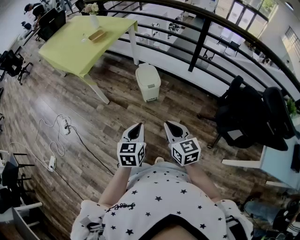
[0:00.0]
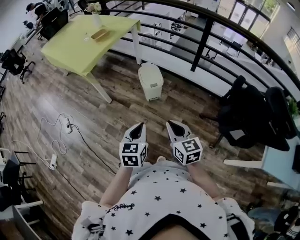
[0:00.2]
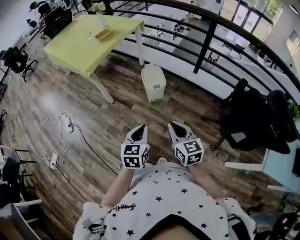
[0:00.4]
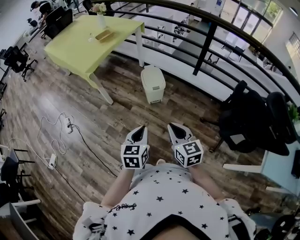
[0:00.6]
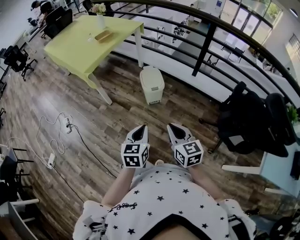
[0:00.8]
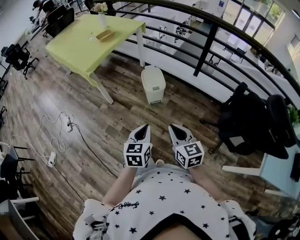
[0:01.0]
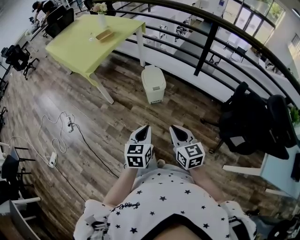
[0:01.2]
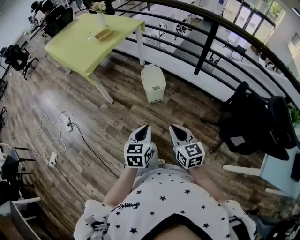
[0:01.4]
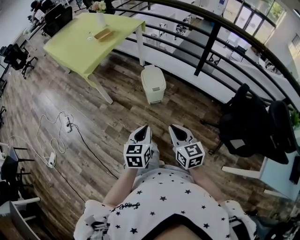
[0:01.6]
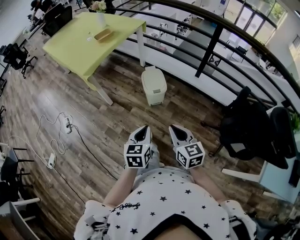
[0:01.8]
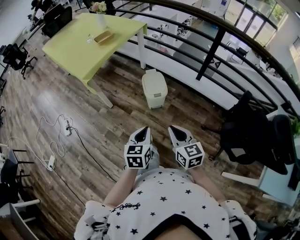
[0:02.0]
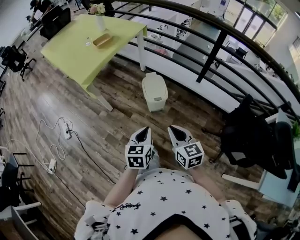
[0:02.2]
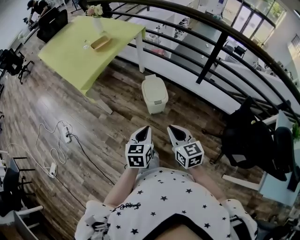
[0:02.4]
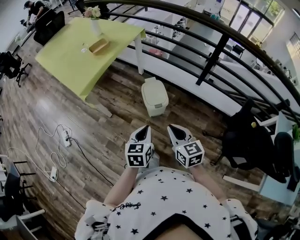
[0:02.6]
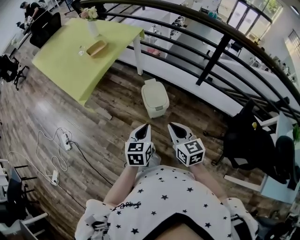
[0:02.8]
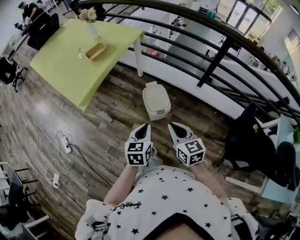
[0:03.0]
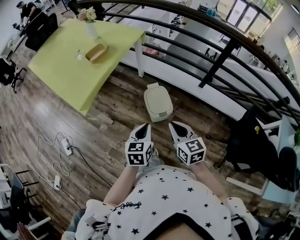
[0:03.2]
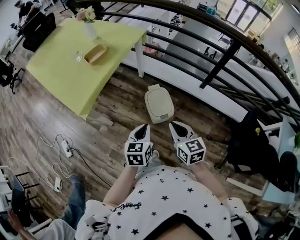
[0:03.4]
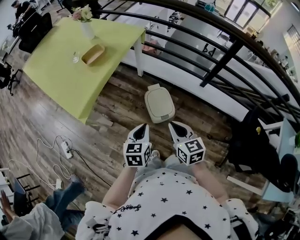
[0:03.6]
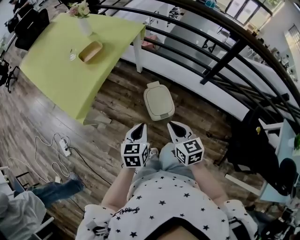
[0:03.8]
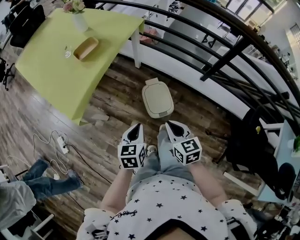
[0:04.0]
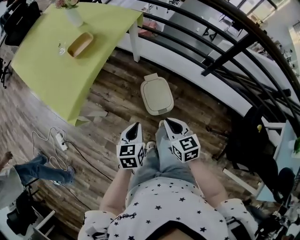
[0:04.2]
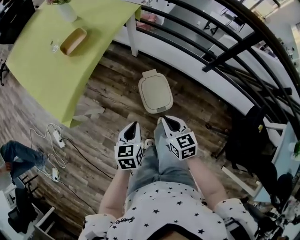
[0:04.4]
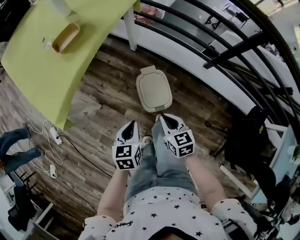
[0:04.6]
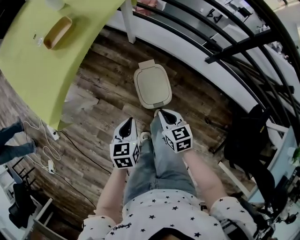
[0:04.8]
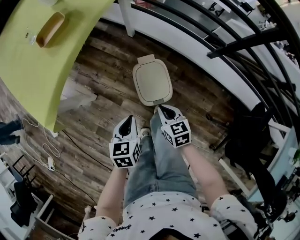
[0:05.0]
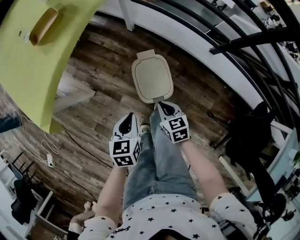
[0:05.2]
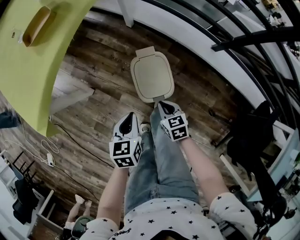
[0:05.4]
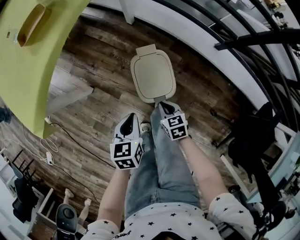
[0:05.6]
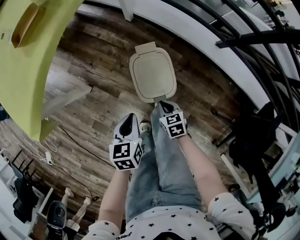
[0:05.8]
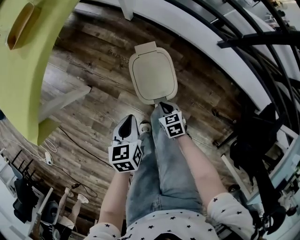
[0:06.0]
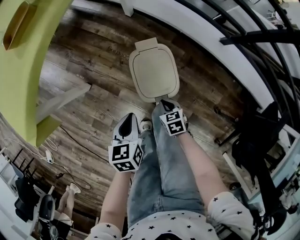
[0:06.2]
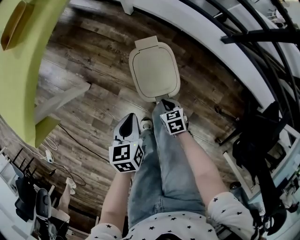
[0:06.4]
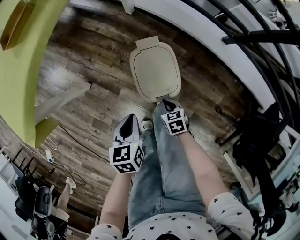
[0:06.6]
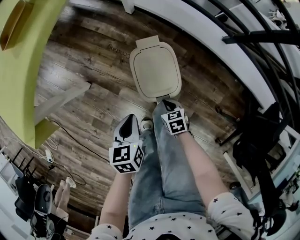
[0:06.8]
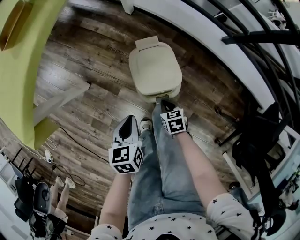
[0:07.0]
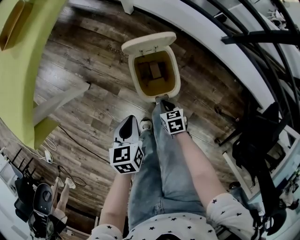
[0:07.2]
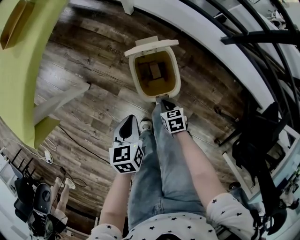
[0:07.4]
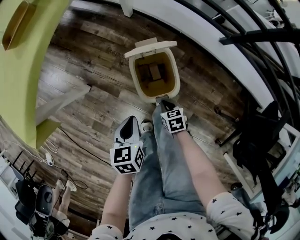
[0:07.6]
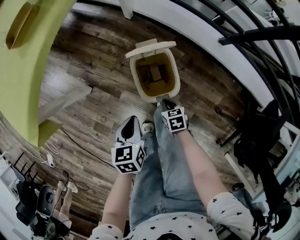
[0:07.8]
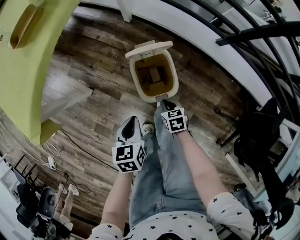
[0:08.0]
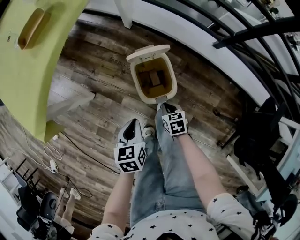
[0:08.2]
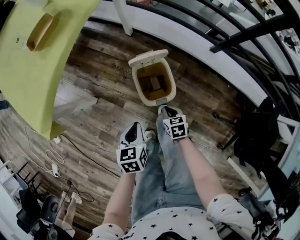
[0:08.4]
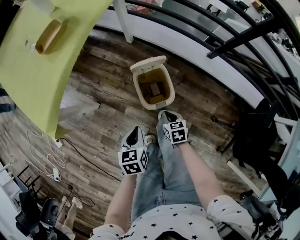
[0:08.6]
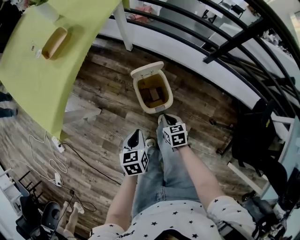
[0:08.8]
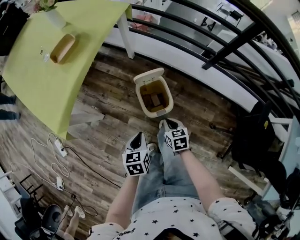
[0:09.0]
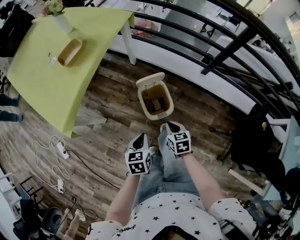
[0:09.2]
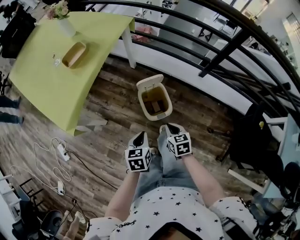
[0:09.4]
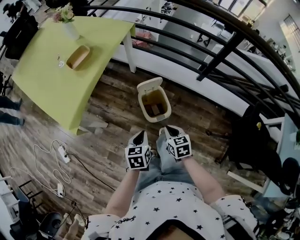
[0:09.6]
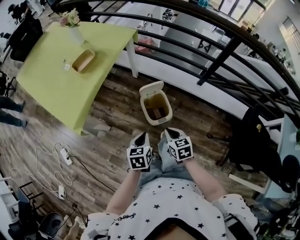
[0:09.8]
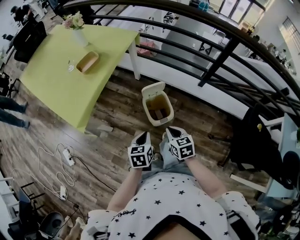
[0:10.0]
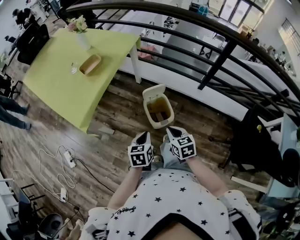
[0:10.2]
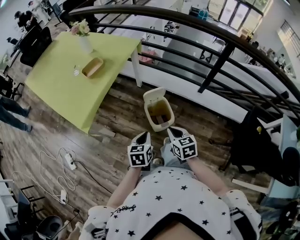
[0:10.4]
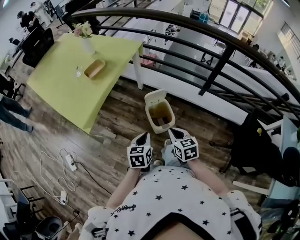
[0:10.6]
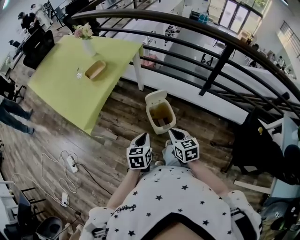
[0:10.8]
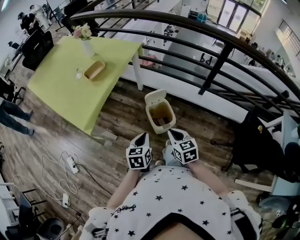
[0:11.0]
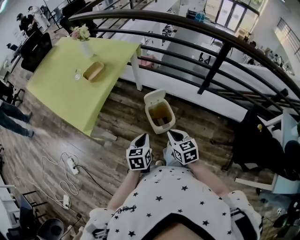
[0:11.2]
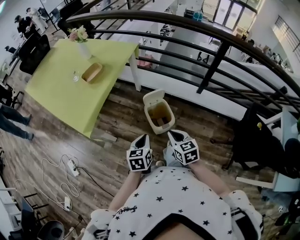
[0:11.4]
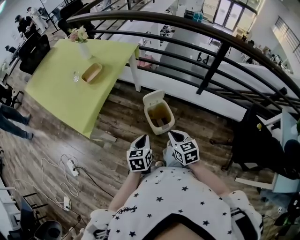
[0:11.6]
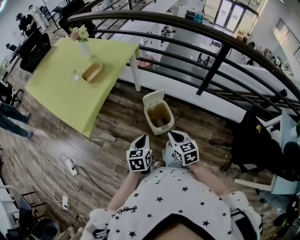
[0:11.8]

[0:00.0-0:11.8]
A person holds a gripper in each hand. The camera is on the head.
0:00.0 to 0:01.4: There are only small adjustments of the grippers.
0:01.4 to 0:03.0: The grippers both shift forward by roughly 30 cm.
0:03.0 to 0:04.4: The grippers both shift forward and downward by some 20 cm.
0:04.4 to 0:06.0: The right gripper goes roughly 35 cm downward, and rotates about 30 degrees. The left gripper heads downward, covering roughly 20 cm.
0:06.0 to 0:07.4: There are only small adjustments of the grippers.
0:07.4 to 0:08.8: The left gripper heads upward and backward, covering some 10 cm; the right gripper travels upward by some 20 cm.
0:08.8 to 0:10.4: The left gripper heads upward, covering about 15 cm. Meanwhile the right gripper goes about 25 cm upward.
0:10.4 to 0:11.8: The grippers move only a little.

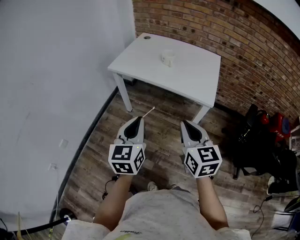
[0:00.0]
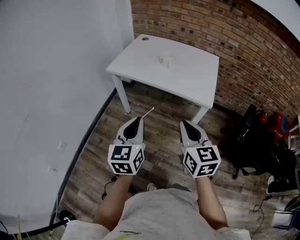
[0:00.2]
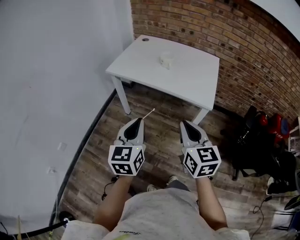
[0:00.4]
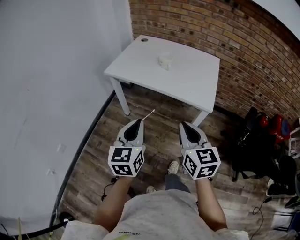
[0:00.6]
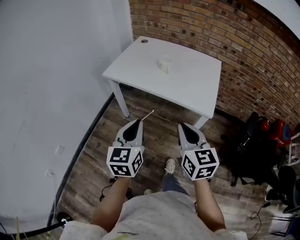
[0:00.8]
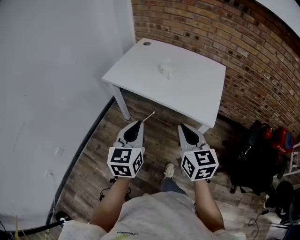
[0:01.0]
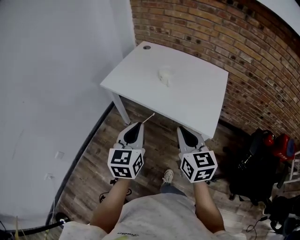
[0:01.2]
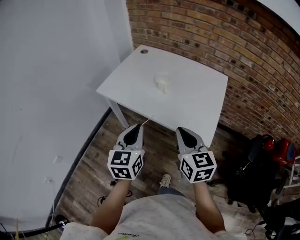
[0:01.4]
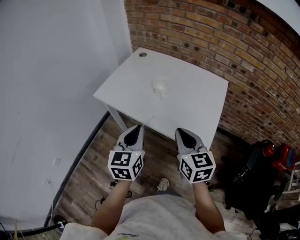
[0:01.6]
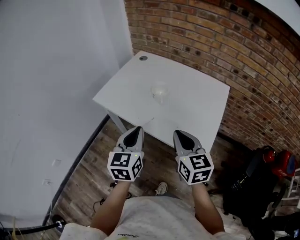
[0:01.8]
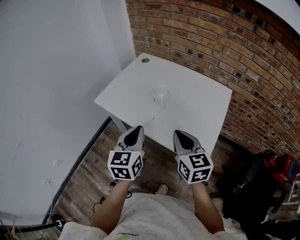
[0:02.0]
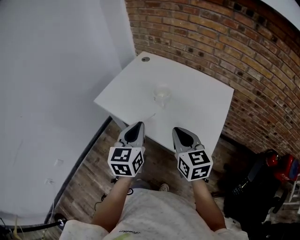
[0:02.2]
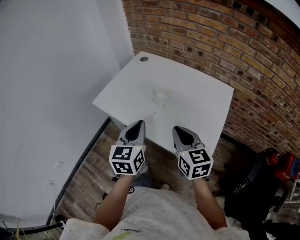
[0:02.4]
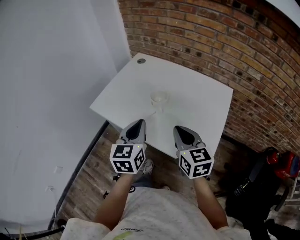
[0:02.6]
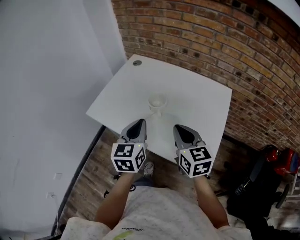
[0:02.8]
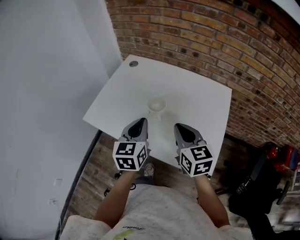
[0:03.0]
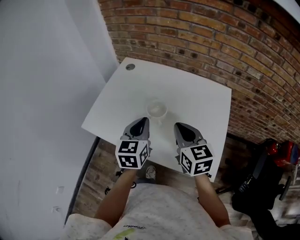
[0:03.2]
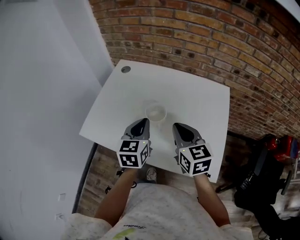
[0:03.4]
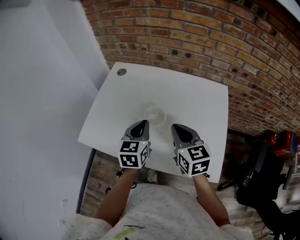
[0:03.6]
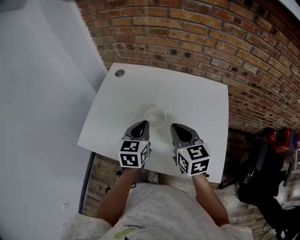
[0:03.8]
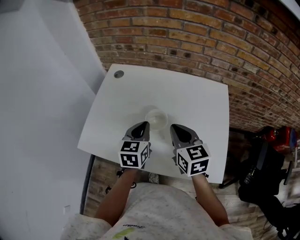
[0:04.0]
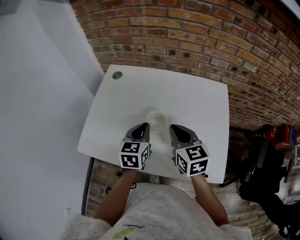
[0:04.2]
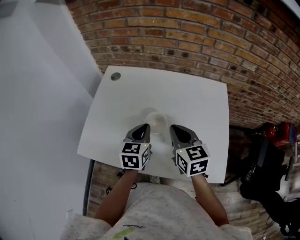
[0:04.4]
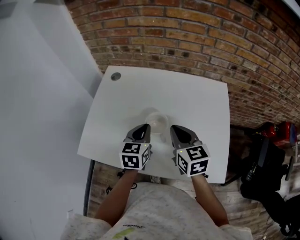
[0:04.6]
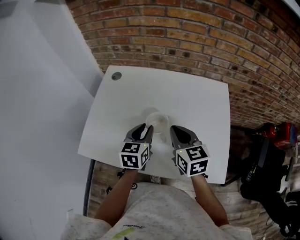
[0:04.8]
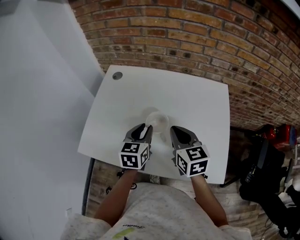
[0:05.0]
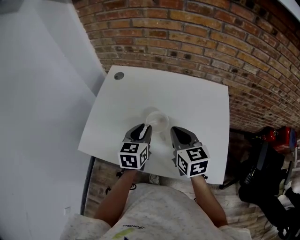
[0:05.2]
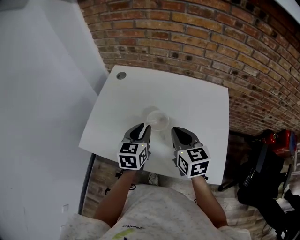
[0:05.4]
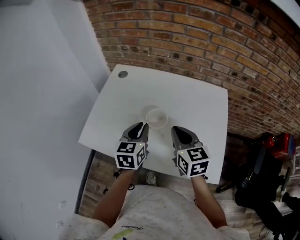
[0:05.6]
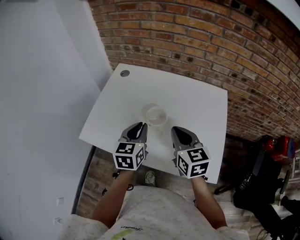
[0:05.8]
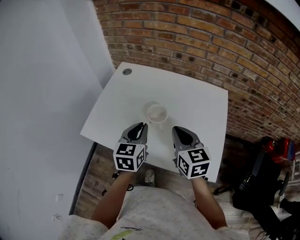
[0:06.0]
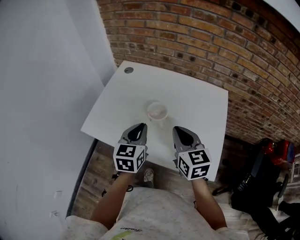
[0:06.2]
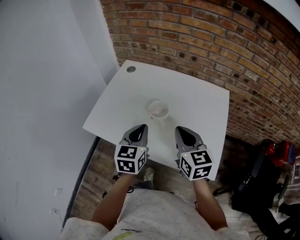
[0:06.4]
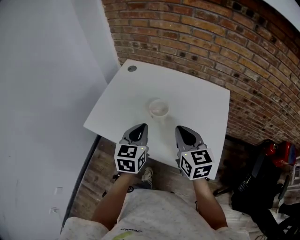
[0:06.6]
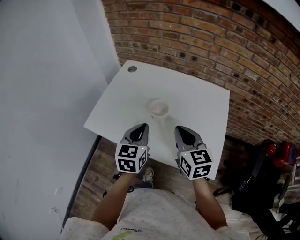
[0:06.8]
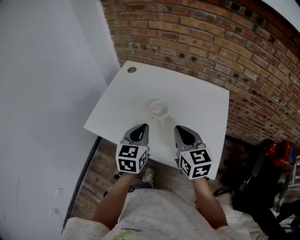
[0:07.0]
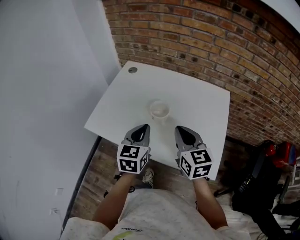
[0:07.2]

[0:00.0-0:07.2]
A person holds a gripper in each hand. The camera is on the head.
0:00.0 to 0:01.4: The left gripper heads forward and to the right, covering approximately 25 cm; the right gripper goes some 25 cm forward.
0:01.4 to 0:02.8: Both grippers move forward, roughly 20 cm.
0:02.8 to 0:04.4: The left gripper goes approximately 20 cm forward and downward, and turns by some 20 degrees, while the right gripper goes approximately 15 cm forward.
0:04.4 to 0:05.8: Both grippers travel together backward, about 5 cm.
0:05.8 to 0:07.2: The two grippers go roughly 5 cm backward.

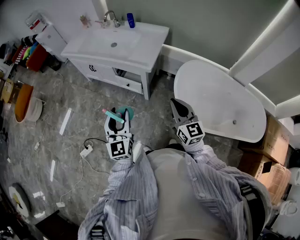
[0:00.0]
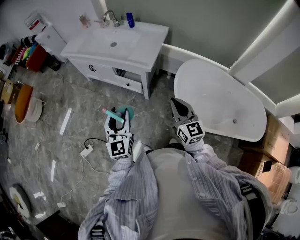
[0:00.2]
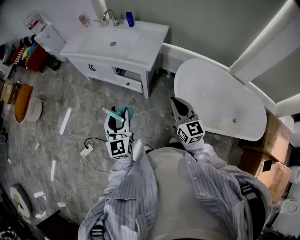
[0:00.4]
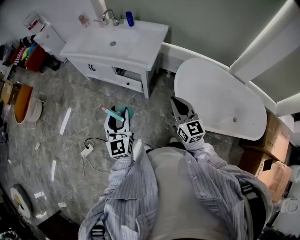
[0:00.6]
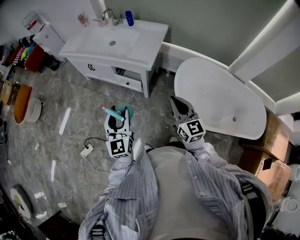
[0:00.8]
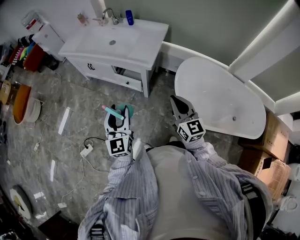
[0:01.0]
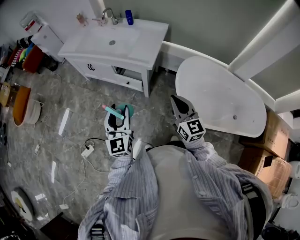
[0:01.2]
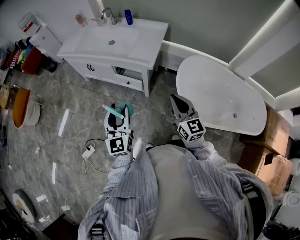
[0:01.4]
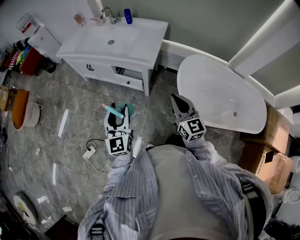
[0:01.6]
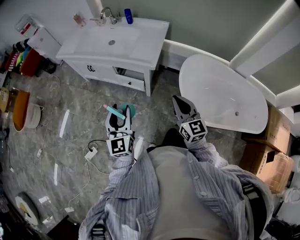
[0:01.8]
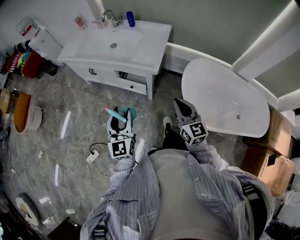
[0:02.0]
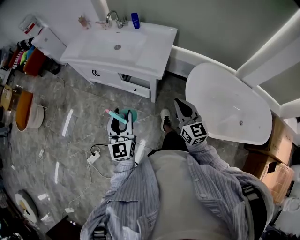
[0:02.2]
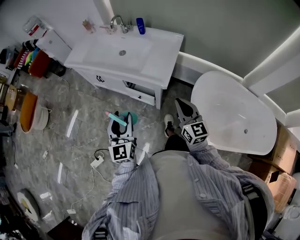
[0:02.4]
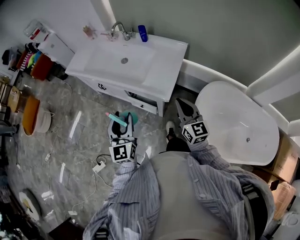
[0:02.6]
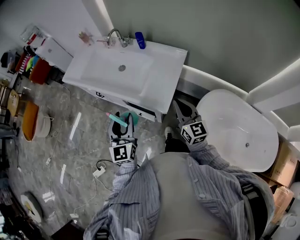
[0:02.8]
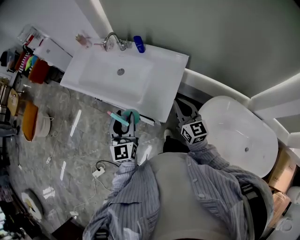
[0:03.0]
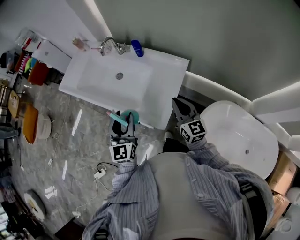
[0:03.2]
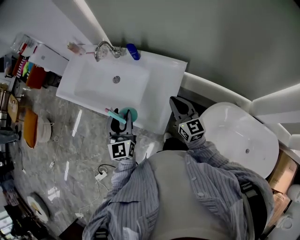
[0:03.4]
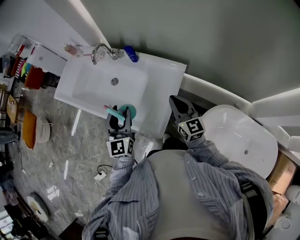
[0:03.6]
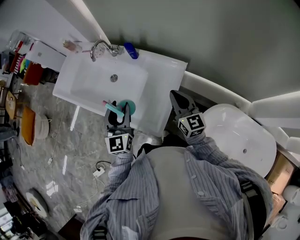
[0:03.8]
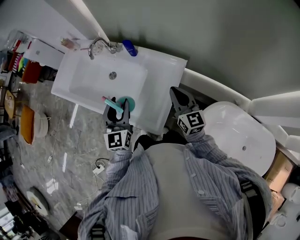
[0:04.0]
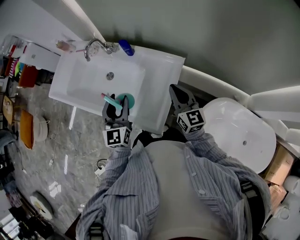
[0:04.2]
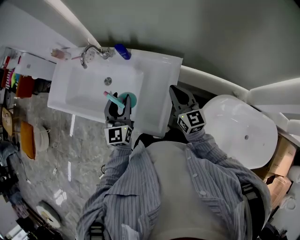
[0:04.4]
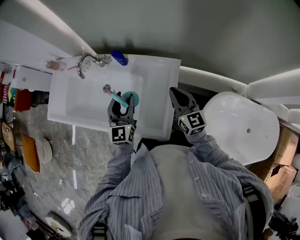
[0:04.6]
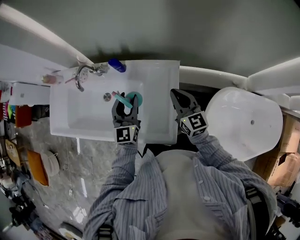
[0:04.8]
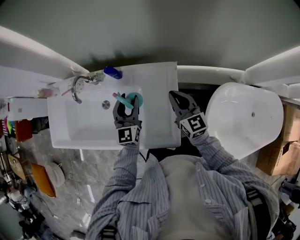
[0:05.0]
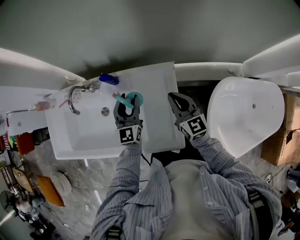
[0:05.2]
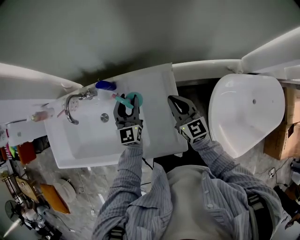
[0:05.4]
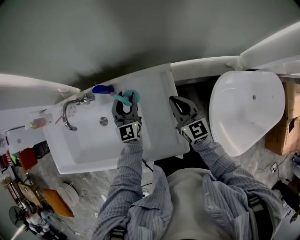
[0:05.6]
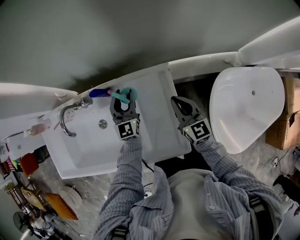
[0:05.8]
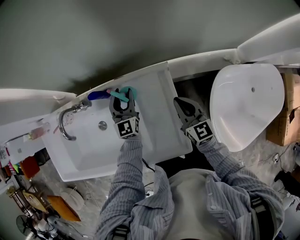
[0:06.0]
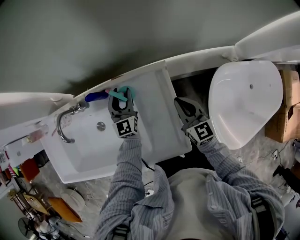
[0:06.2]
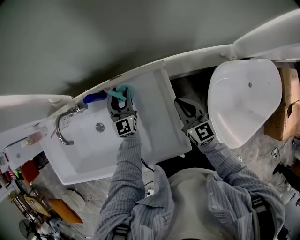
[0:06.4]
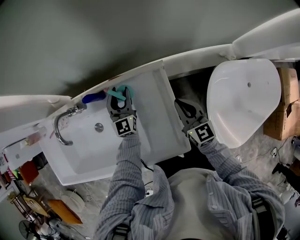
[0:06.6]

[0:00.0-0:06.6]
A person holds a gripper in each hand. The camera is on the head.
0:00.0 to 0:01.6: The right gripper shifts by roughly 5 cm. The left gripper changes place by some 5 cm.
0:01.6 to 0:03.2: The two grippers travel together, forward, approximately 50 cm.
0:03.2 to 0:05.0: The right gripper is displaced forward by roughly 20 cm; the left gripper is displaced forward by roughly 30 cm, and swivels about 30 degrees.
0:05.0 to 0:06.6: The left gripper shifts roughly 20 cm forward and downward, while the right gripper is displaced downward by about 10 cm.
